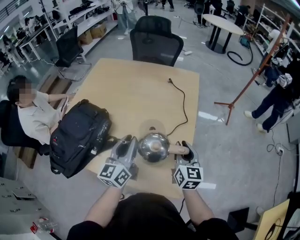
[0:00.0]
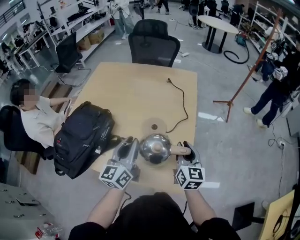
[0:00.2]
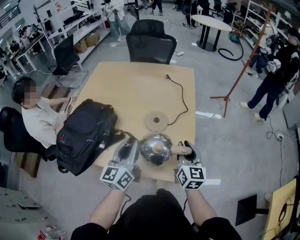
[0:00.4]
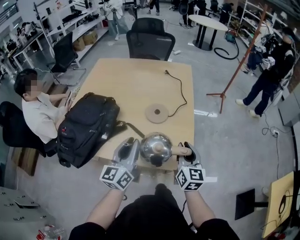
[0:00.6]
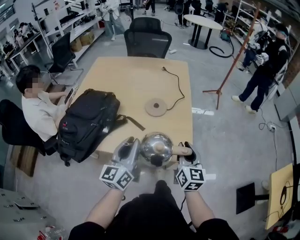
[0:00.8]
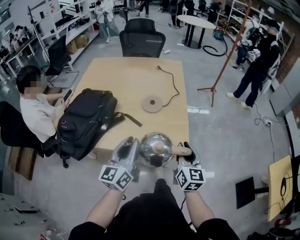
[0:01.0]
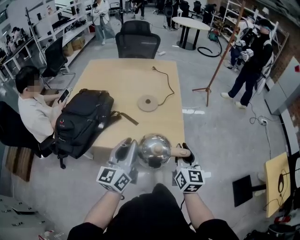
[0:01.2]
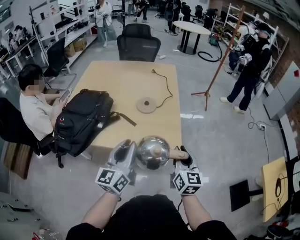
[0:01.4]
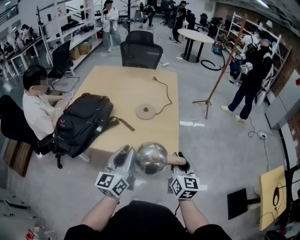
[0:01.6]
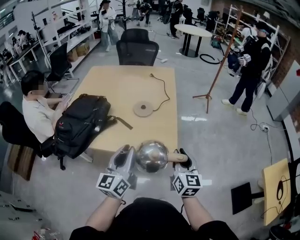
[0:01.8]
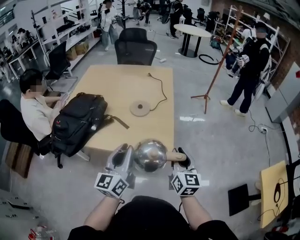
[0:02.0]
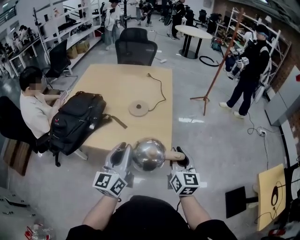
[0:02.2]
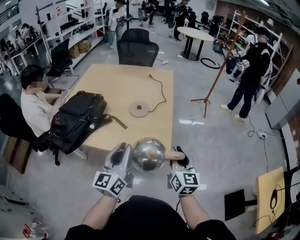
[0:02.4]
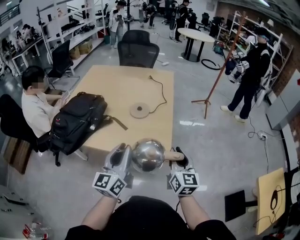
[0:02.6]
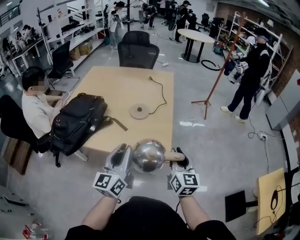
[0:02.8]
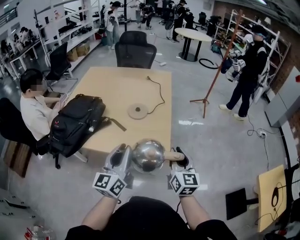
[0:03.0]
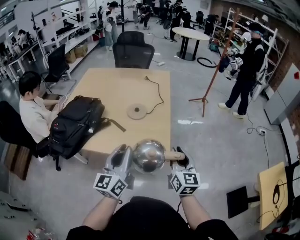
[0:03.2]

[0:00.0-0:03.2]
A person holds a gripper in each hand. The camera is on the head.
0:00.0 to 0:01.6: The grippers both shift backward by some 25 cm.
0:01.6 to 0:03.2: There are only small adjustments of the grippers.

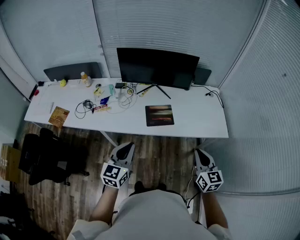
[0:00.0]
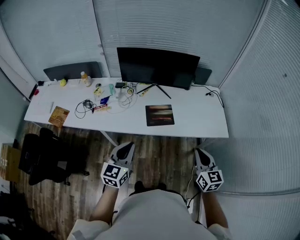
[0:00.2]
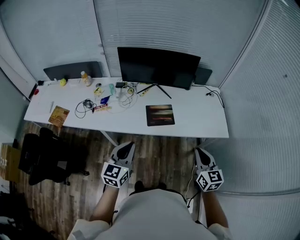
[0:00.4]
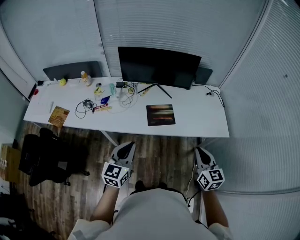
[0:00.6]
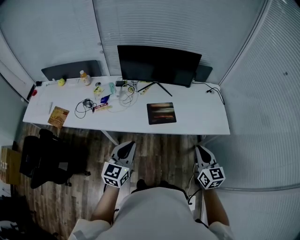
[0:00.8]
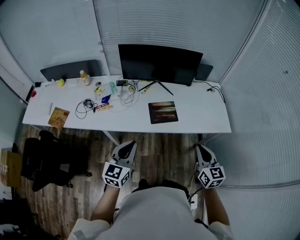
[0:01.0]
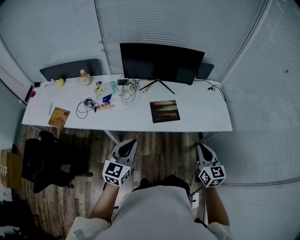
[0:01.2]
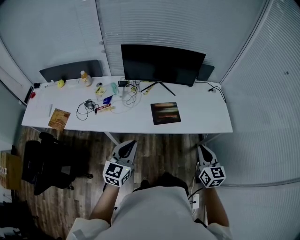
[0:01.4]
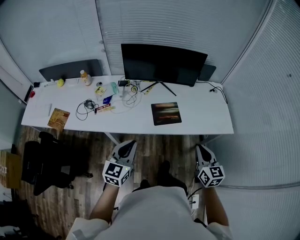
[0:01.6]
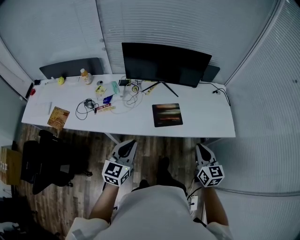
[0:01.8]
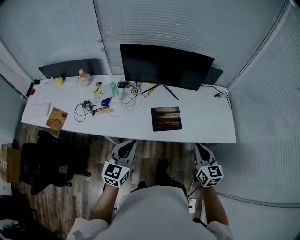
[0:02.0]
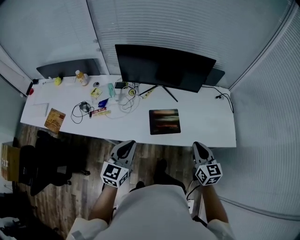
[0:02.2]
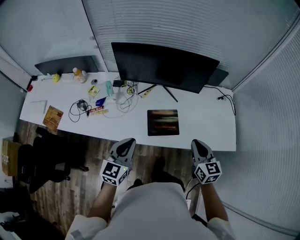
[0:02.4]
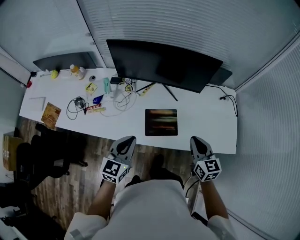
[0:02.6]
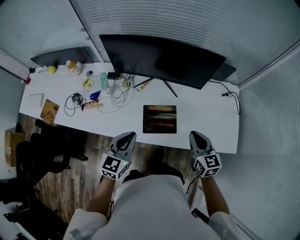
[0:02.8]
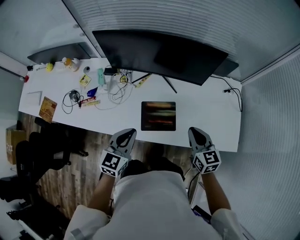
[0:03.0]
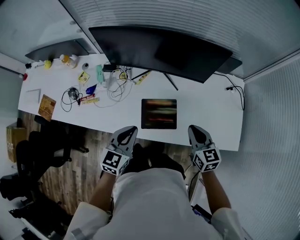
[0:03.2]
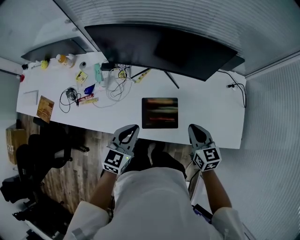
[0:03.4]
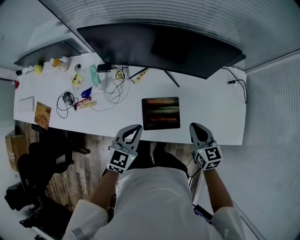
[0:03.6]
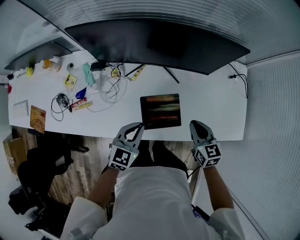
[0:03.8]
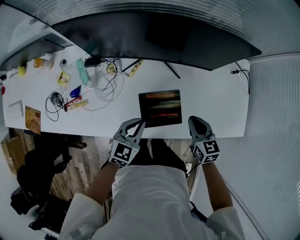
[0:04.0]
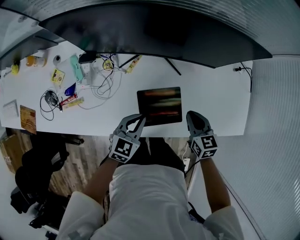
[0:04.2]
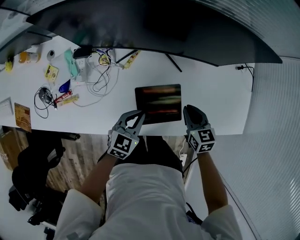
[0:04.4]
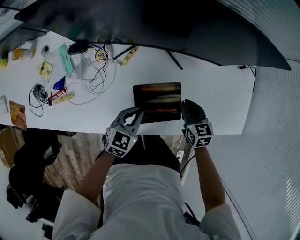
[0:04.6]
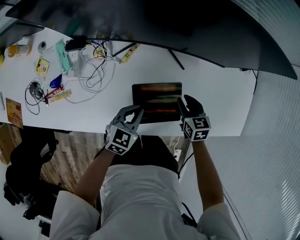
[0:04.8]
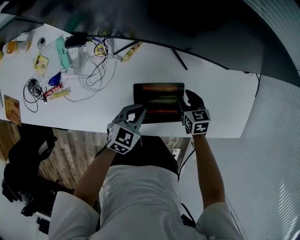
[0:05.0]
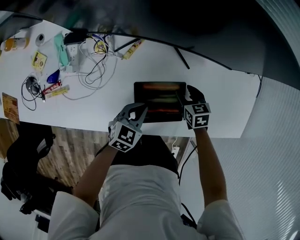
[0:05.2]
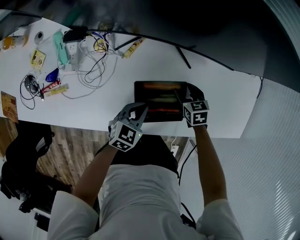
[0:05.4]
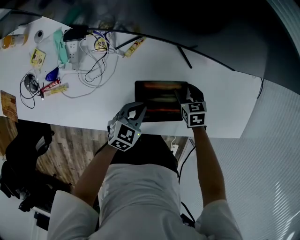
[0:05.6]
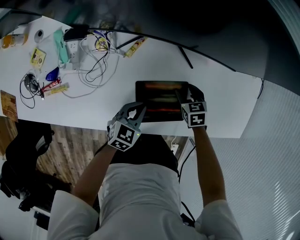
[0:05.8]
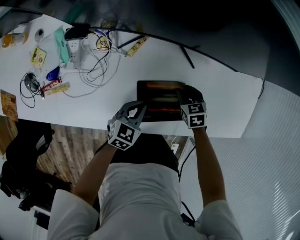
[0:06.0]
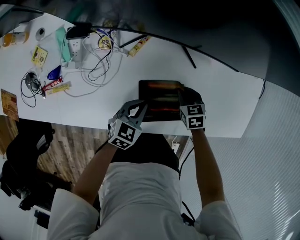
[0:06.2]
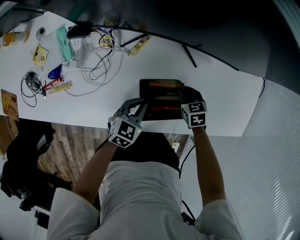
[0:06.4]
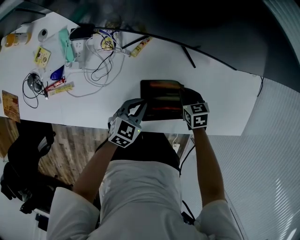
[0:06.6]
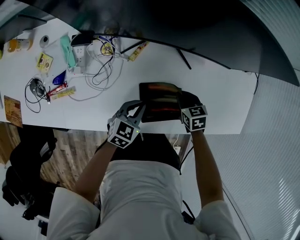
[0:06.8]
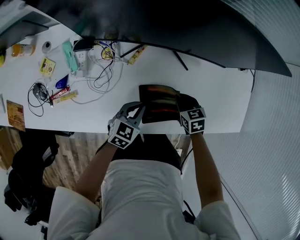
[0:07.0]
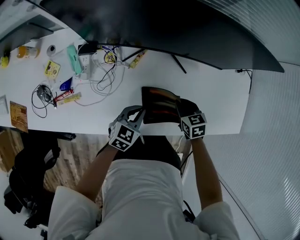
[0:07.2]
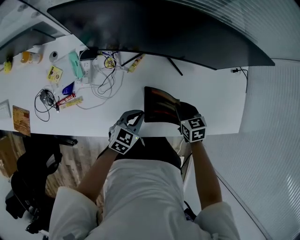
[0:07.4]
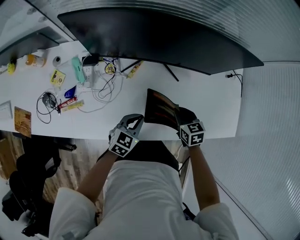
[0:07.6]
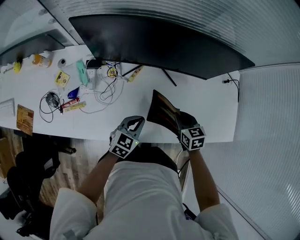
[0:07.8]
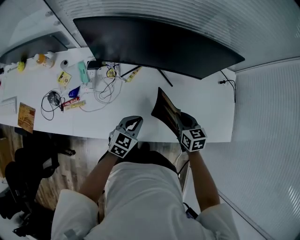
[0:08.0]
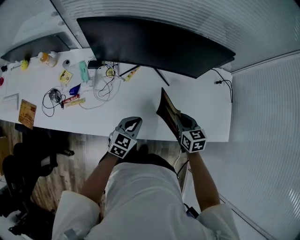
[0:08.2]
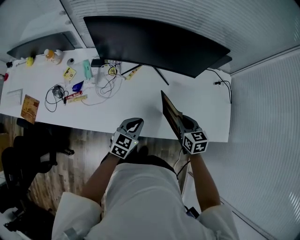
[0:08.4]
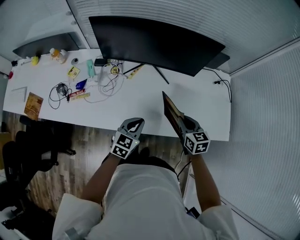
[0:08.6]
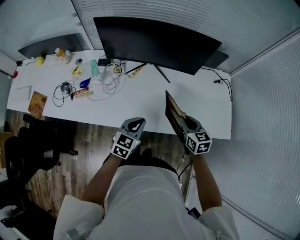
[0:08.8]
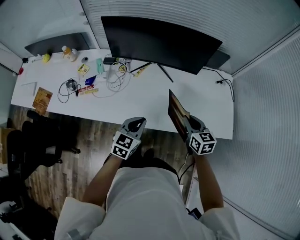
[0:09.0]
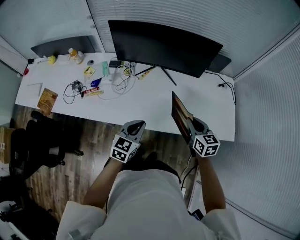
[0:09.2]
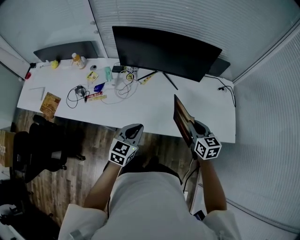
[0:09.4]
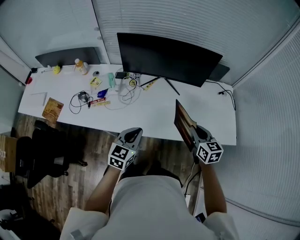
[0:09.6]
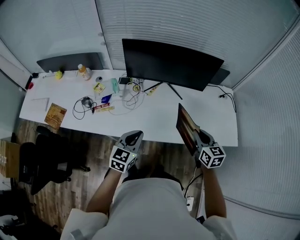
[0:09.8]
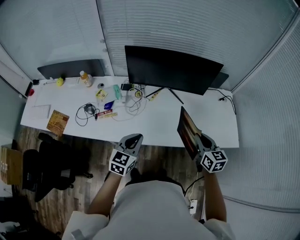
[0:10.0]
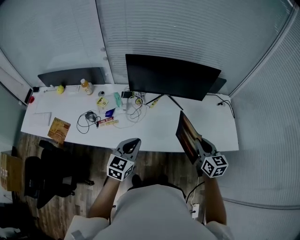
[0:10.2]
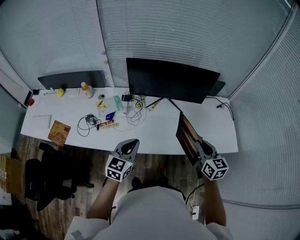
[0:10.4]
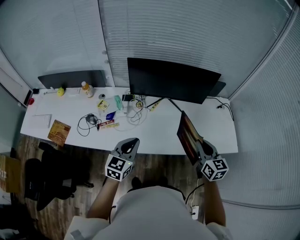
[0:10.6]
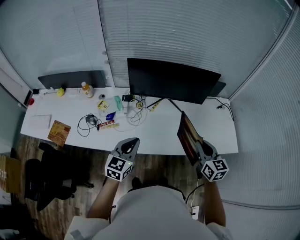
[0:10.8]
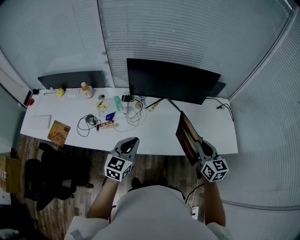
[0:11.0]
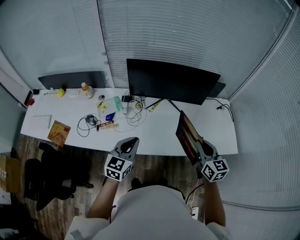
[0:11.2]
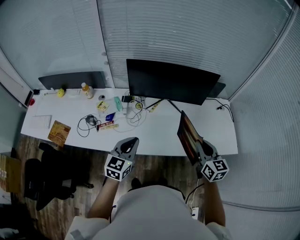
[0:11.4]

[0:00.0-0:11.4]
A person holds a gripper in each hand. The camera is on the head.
0:00.0 to 0:01.4: The grippers both shift to the left by roughly 5 cm.
0:01.4 to 0:02.8: The left gripper shifts roughly 25 cm forward and to the right. The right gripper is displaced forward by some 30 cm.
0:02.8 to 0:04.2: Both grippers move downward and forward, roughly 20 cm. The left gripper rotates some 20 degrees.
0:04.2 to 0:05.6: The grippers both shift downward by about 15 cm. The right gripper changes its angle by approximately 20 degrees, and opens up.
0:05.6 to 0:07.2: The left gripper changes place by about 5 cm, while the right gripper goes approximately 10 cm upward, and closes its fingers.
0:07.2 to 0:08.6: The left gripper moves upward, backward and to the right, some 20 cm. Meanwhile the right gripper shifts approximately 20 cm upward, to the right and backward, and turns by approximately 20 degrees.
0:08.6 to 0:10.0: The left gripper heads to the left, upward and backward, covering about 20 cm. The right gripper heads upward, backward and to the left, covering approximately 20 cm.
0:10.0 to 0:11.4: The left gripper shifts by roughly 5 cm. Meanwhile the right gripper moves upward, roughly 5 cm.

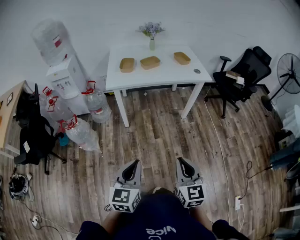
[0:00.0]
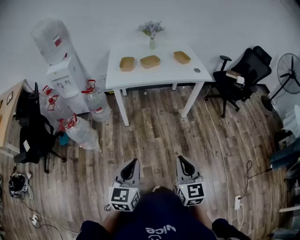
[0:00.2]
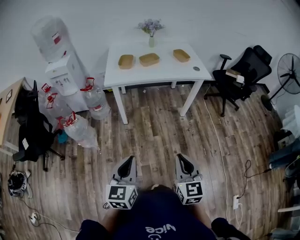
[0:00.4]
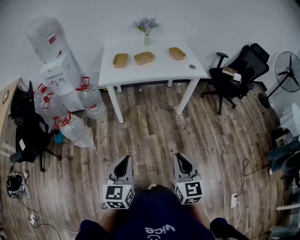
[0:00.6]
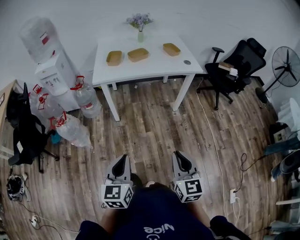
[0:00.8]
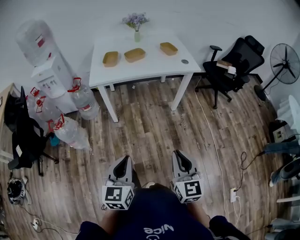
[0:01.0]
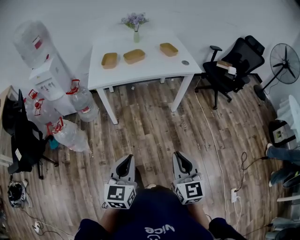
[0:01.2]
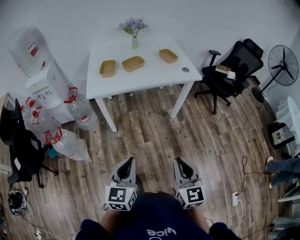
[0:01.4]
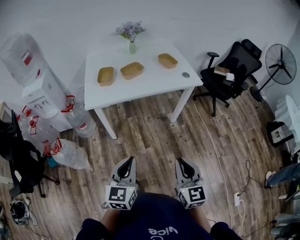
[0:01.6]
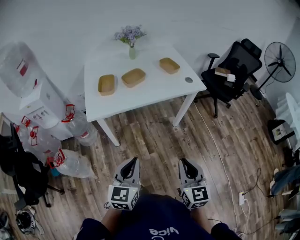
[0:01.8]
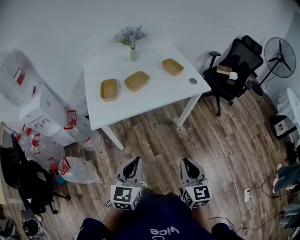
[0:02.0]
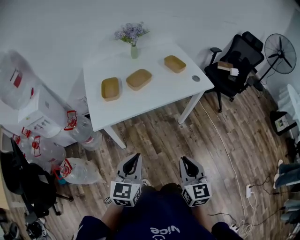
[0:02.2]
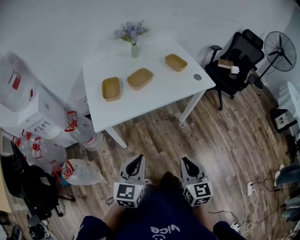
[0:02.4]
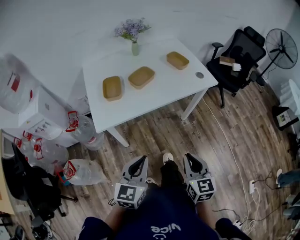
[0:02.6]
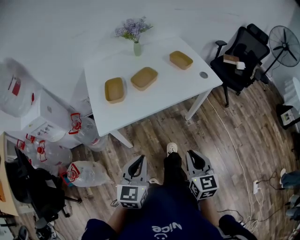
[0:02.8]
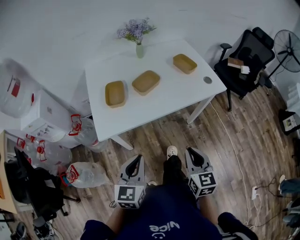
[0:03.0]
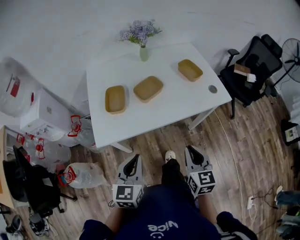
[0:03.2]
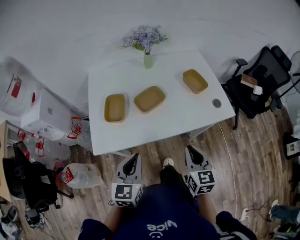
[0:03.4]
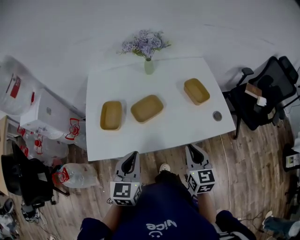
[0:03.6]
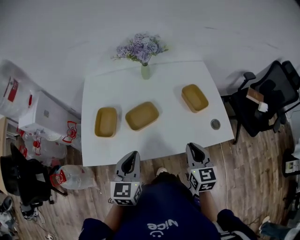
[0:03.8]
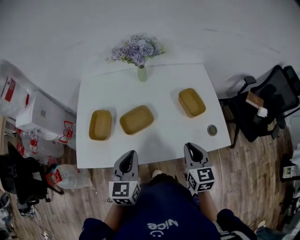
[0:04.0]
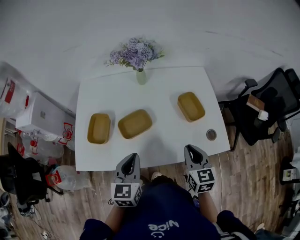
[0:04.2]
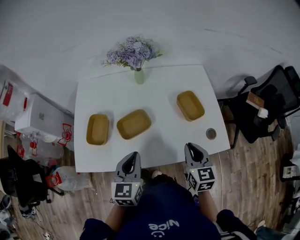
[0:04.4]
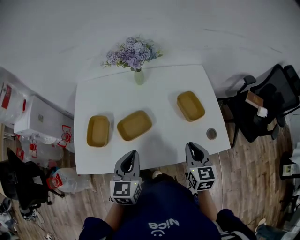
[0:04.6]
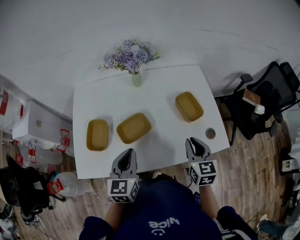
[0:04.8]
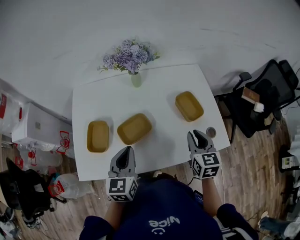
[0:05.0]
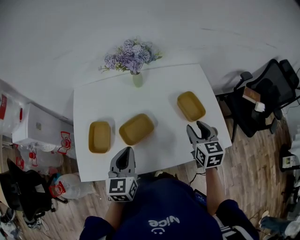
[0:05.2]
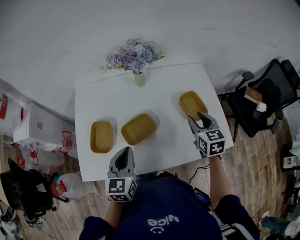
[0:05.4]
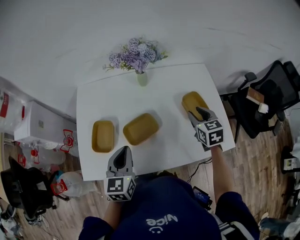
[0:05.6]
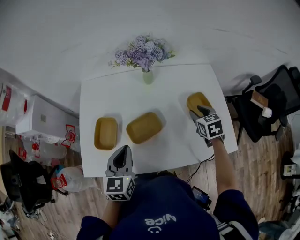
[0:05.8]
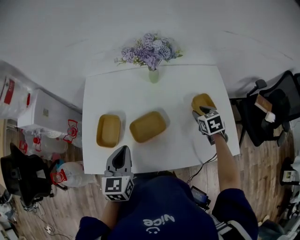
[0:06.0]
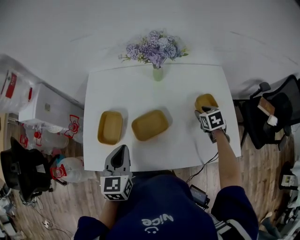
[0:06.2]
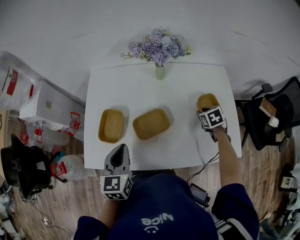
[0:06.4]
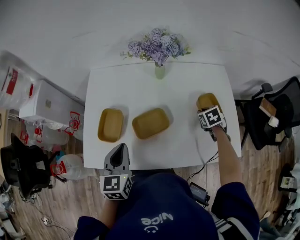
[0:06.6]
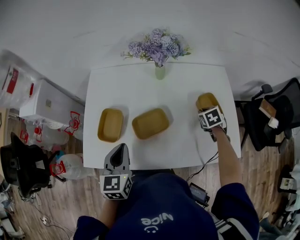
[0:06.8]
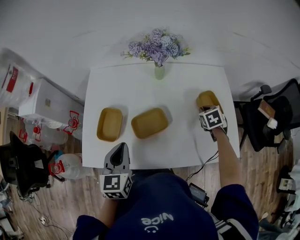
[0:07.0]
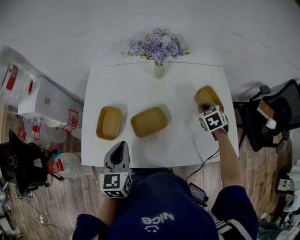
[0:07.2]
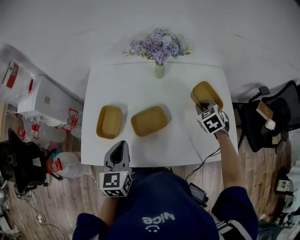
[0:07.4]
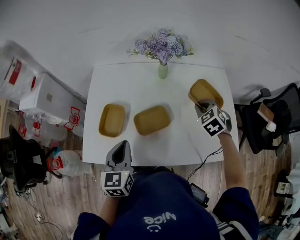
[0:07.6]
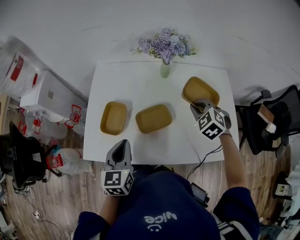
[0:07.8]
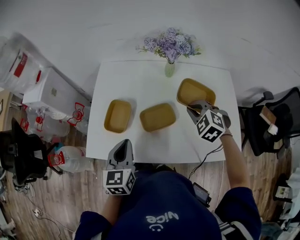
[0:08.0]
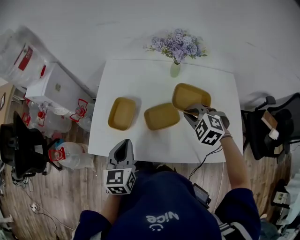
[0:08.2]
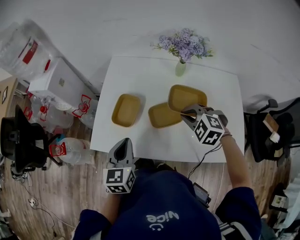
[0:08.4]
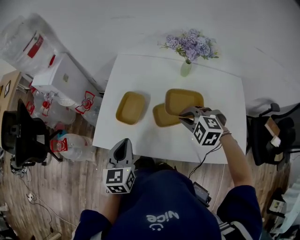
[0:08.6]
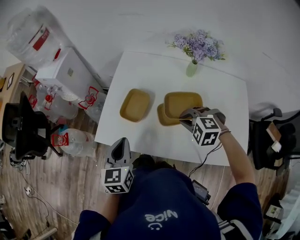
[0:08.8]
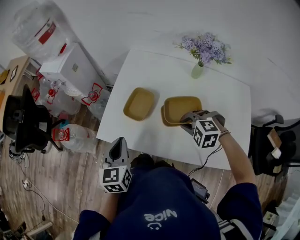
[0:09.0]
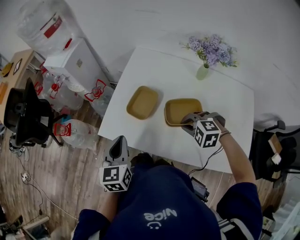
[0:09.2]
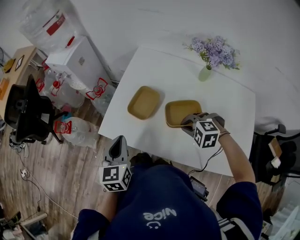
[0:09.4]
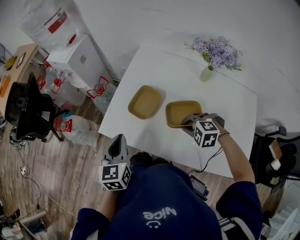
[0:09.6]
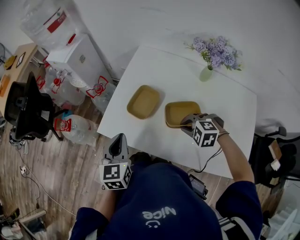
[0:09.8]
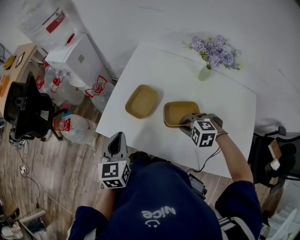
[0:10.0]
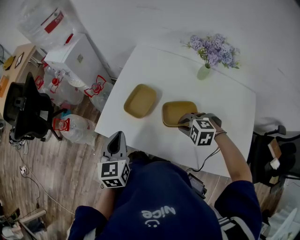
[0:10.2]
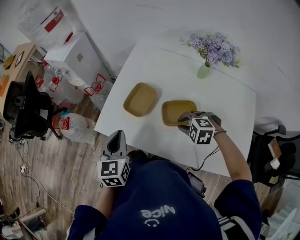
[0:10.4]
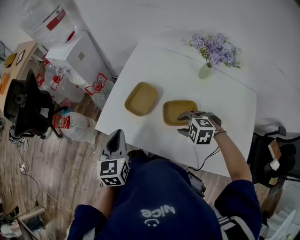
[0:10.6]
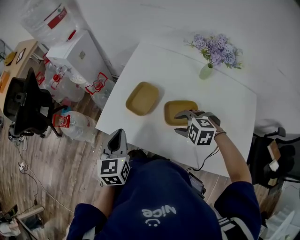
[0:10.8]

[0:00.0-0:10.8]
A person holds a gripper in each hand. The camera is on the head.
0:00.0 to 0:01.6: Both grippers move forward, approximately 20 cm.
0:01.6 to 0:03.0: The grippers both shift forward and to the left by some 25 cm.
0:03.0 to 0:04.6: Both grippers travel together forward and to the right, some 40 cm.
0:04.6 to 0:06.2: The right gripper shifts about 25 cm forward and downward, tips its fingers downward by roughly 30 degrees, and opens its fingers. Meanwhile the left gripper moves to the left, approximately 10 cm.
0:06.2 to 0:07.8: The right gripper moves upward and to the left, roughly 15 cm, rotates around the line of its fingers by about 40 degrees, counterclockwise from behind, and closes its fingers.
0:07.8 to 0:09.2: The left gripper ends up about 15 cm from where it was, and changes its angle by approximately 20 degrees; the right gripper moves roughly 20 cm, and turns by approximately 50 degrees.
0:09.2 to 0:10.8: The right gripper opens up.
